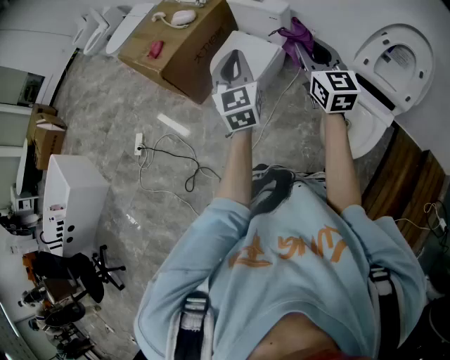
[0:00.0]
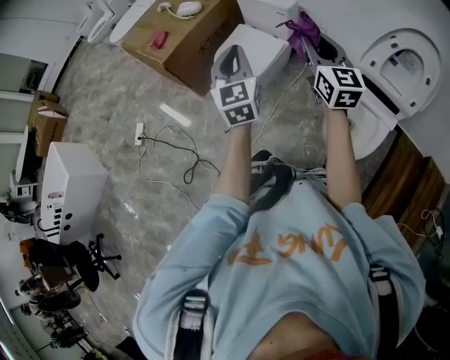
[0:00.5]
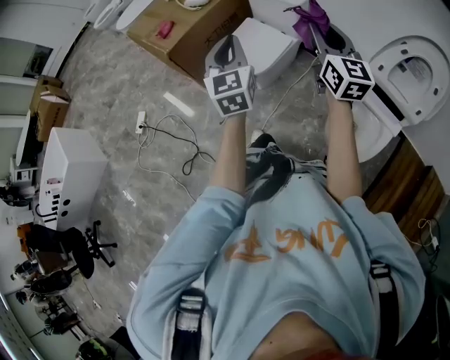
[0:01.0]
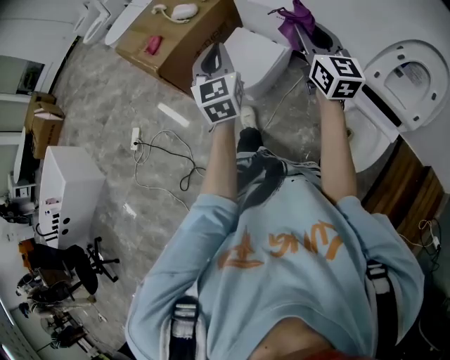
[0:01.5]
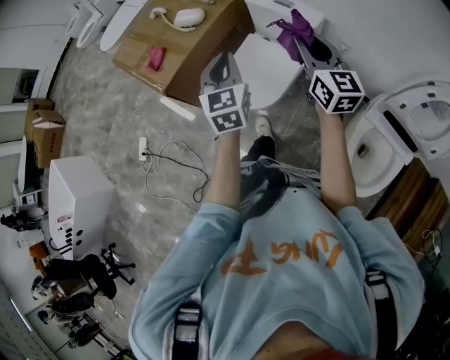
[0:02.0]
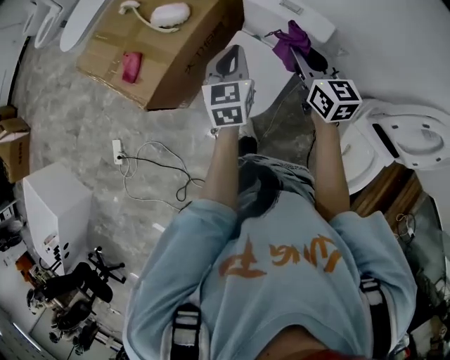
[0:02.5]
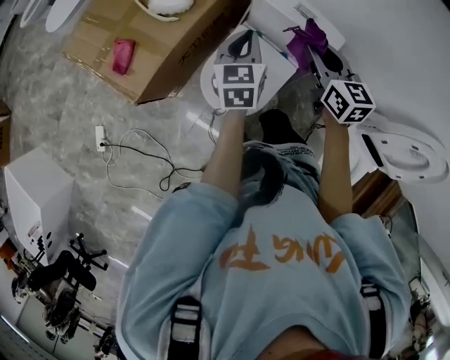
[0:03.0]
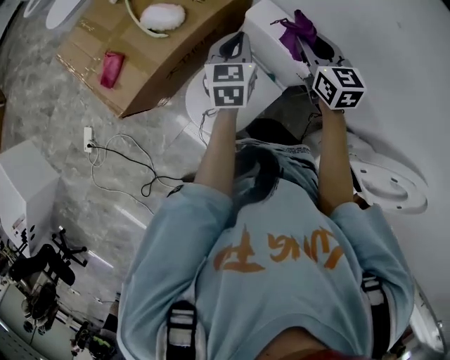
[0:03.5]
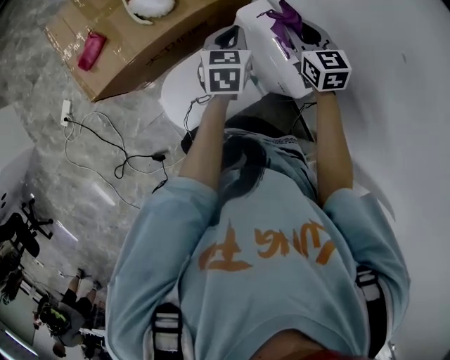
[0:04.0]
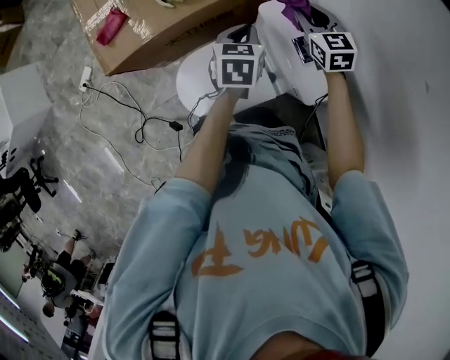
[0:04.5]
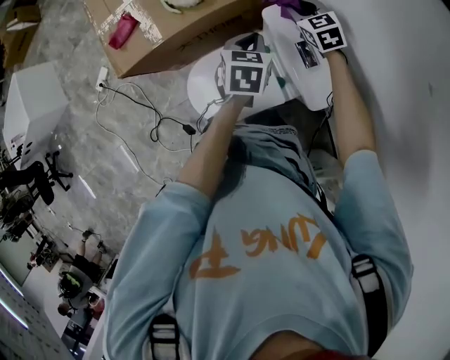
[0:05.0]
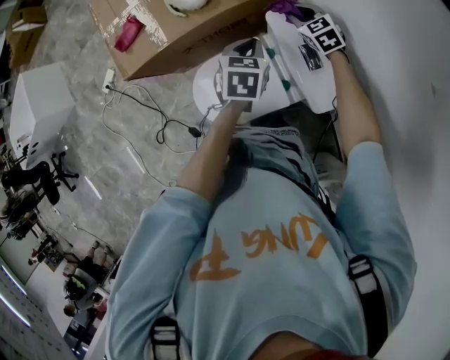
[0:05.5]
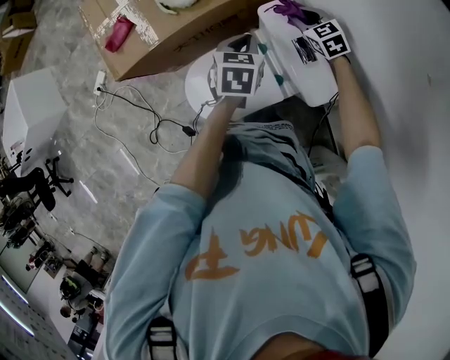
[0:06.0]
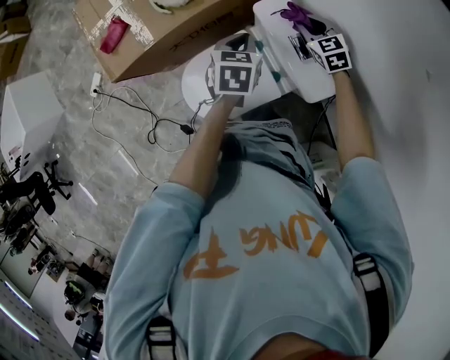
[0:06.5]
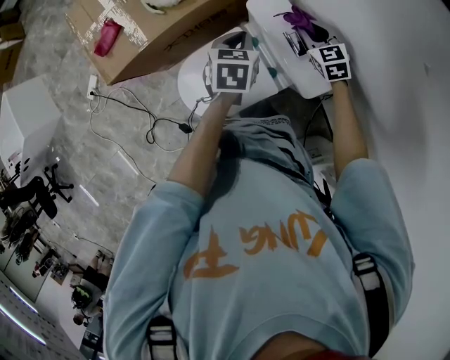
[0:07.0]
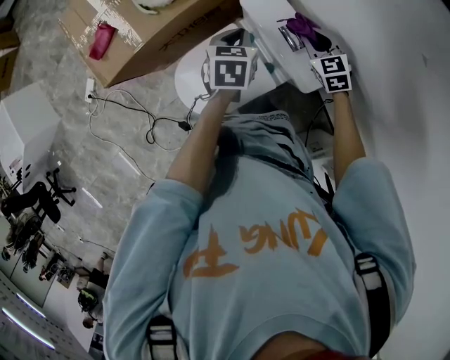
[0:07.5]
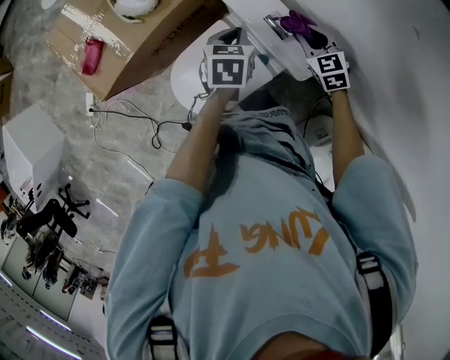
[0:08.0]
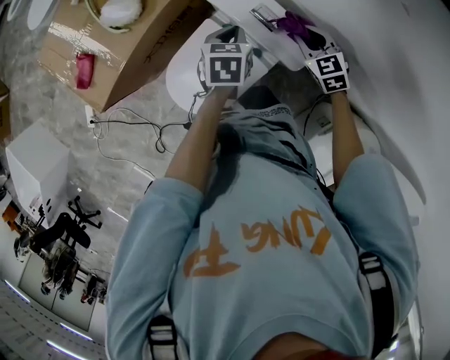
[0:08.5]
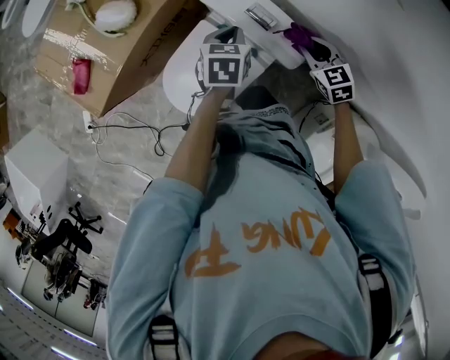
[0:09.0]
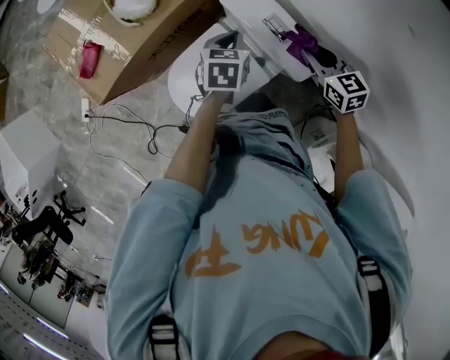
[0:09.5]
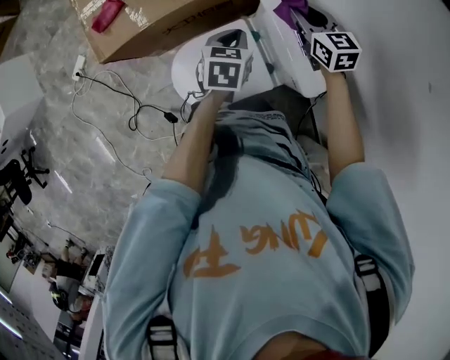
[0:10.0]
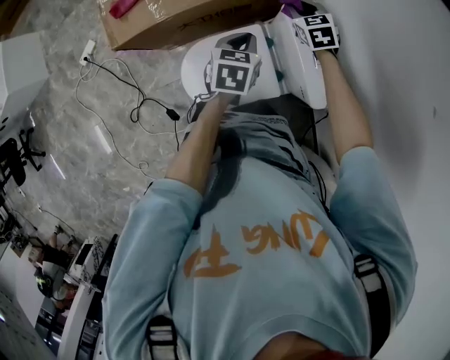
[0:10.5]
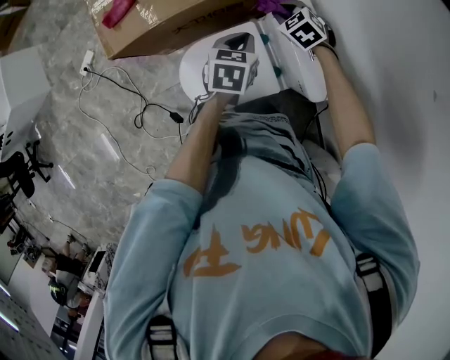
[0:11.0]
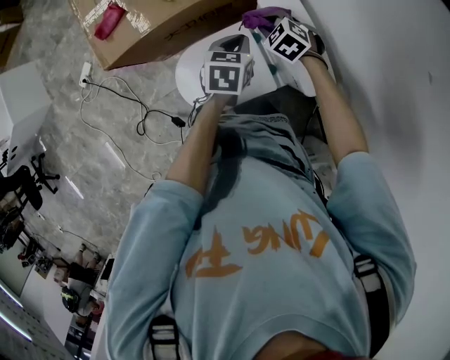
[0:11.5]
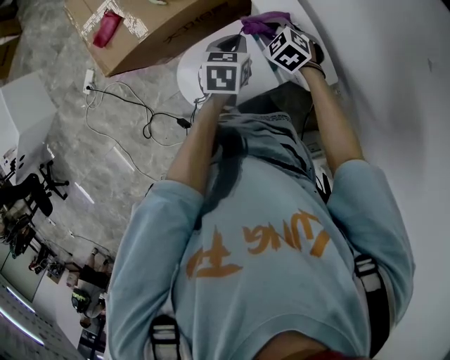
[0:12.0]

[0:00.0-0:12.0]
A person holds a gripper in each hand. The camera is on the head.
0:00.0 to 0:02.0: The grippers both shift forward by about 30 cm.
0:02.0 to 0:04.0: The pair of grippers is taken forward, some 40 cm. The right gripper rotates roughly 40 degrees. Meanwhile the left gripper swivels roughly 30 degrees.
0:04.0 to 0:06.0: The right gripper moves downward and forward, approximately 15 cm, and swivels approximately 20 degrees.
0:06.0 to 0:08.0: The right gripper goes some 15 cm backward and to the right. Meanwhile the left gripper moves roughly 5 cm.
0:08.0 to 0:10.0: The left gripper goes approximately 10 cm to the left; the right gripper shifts roughly 20 cm to the left, forward and upward, and changes its angle by about 20 degrees.
0:10.0 to 0:12.0: The right gripper goes approximately 15 cm downward, to the left and backward, and changes its angle by approximately 40 degrees.

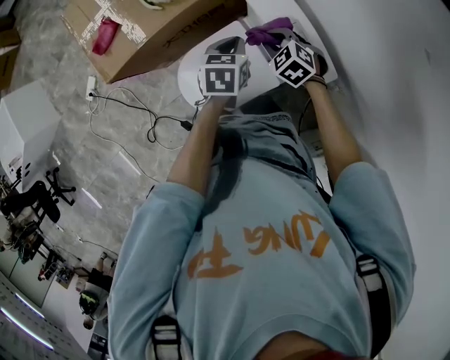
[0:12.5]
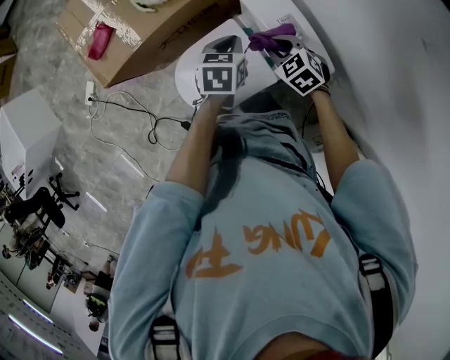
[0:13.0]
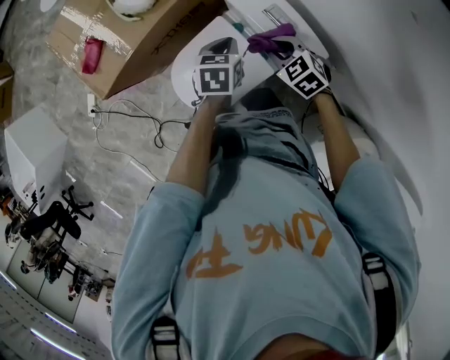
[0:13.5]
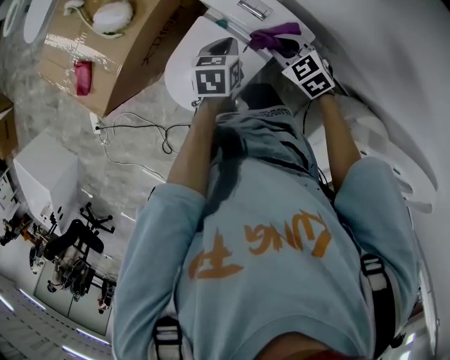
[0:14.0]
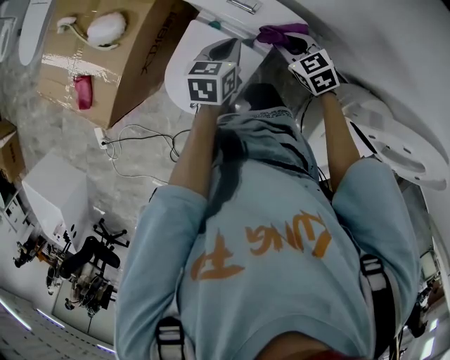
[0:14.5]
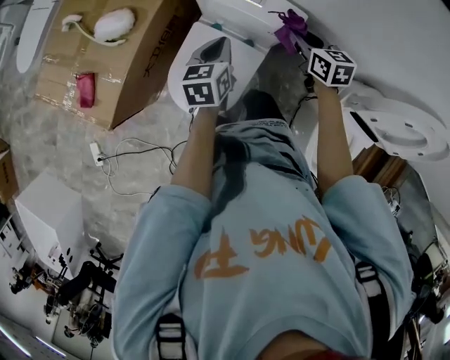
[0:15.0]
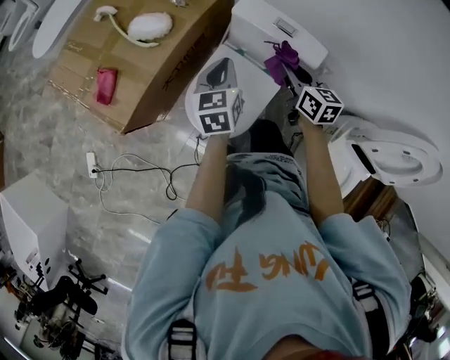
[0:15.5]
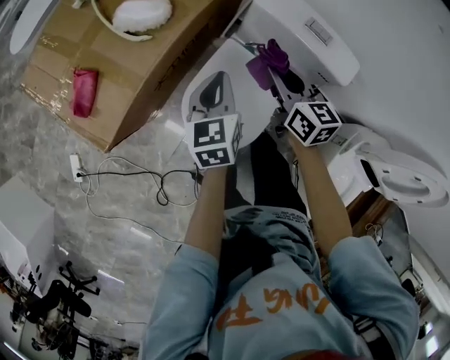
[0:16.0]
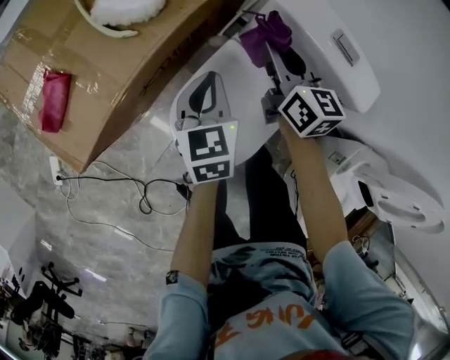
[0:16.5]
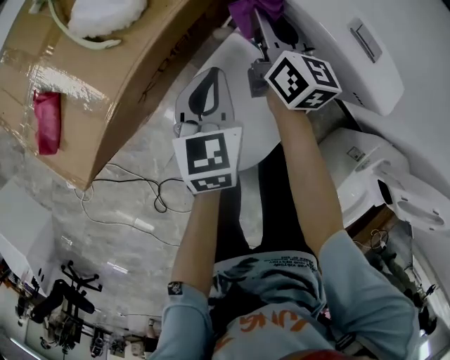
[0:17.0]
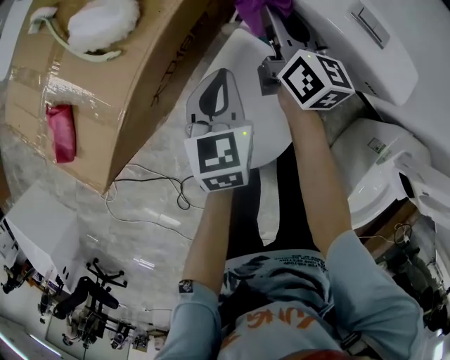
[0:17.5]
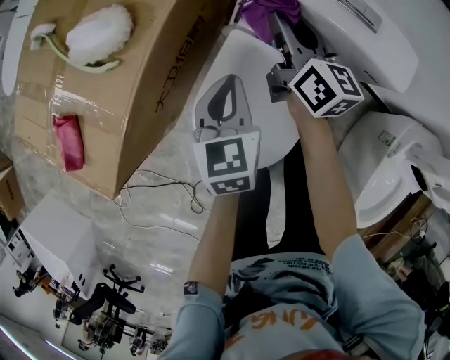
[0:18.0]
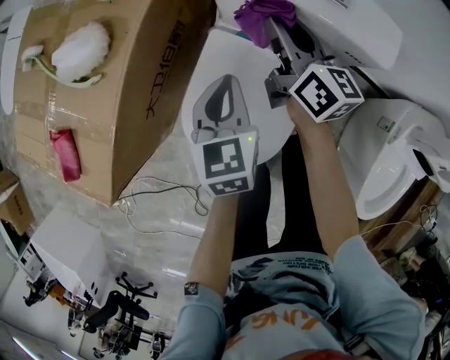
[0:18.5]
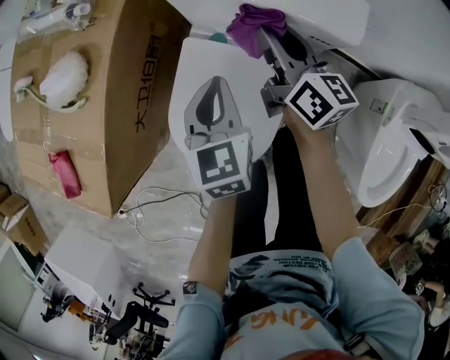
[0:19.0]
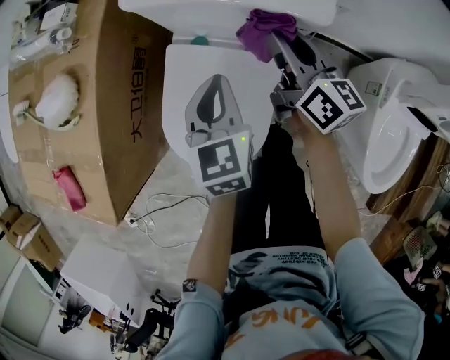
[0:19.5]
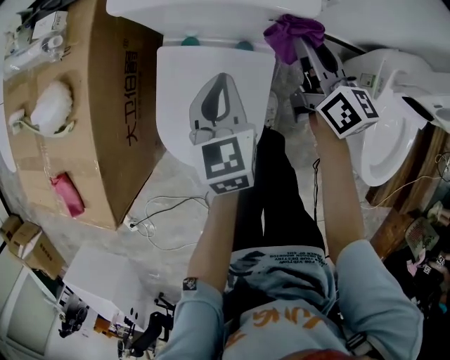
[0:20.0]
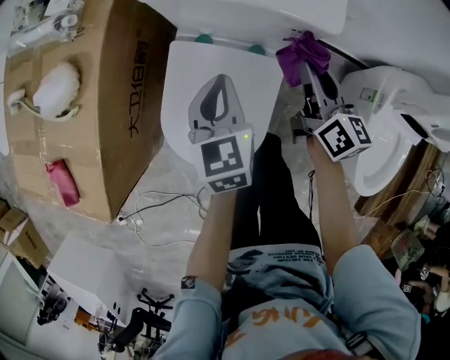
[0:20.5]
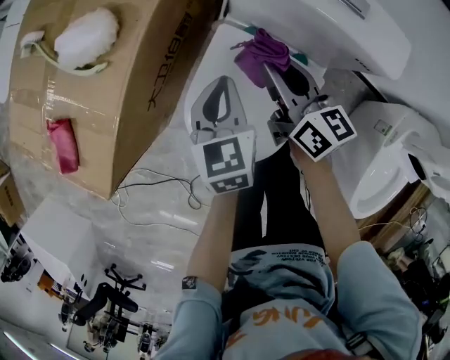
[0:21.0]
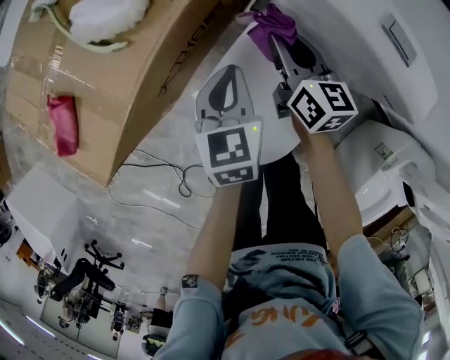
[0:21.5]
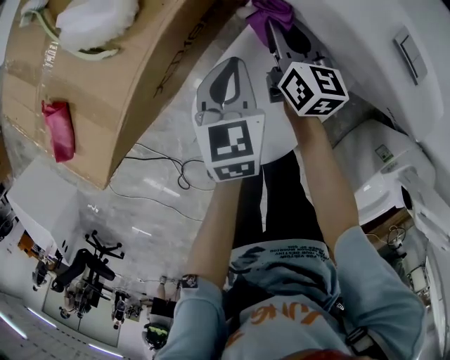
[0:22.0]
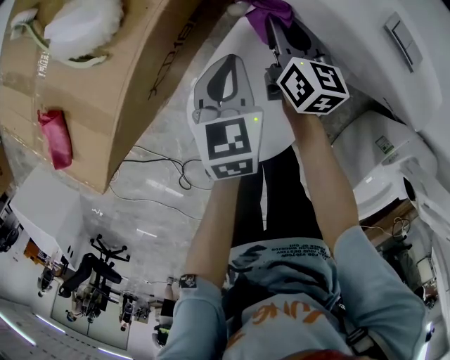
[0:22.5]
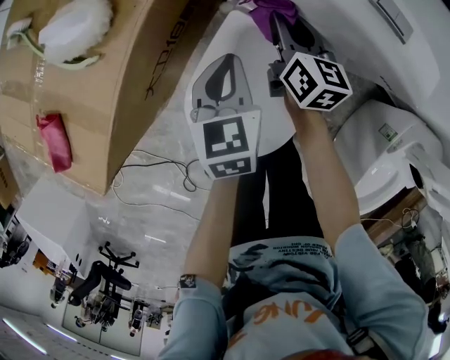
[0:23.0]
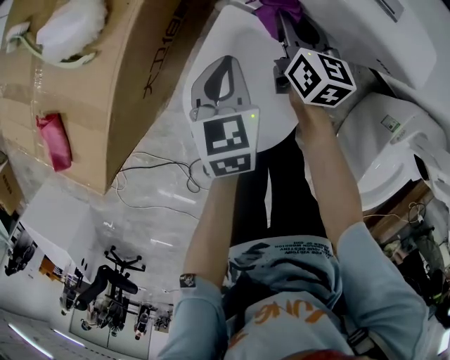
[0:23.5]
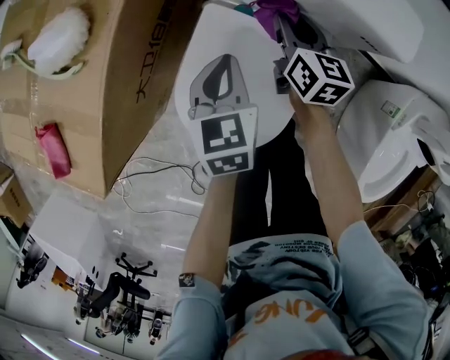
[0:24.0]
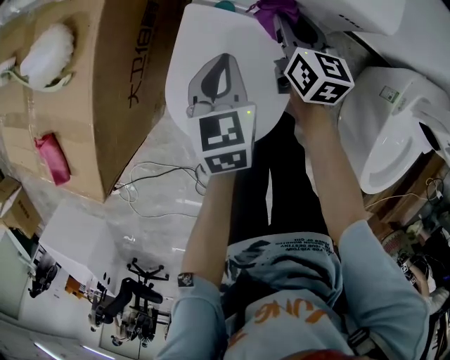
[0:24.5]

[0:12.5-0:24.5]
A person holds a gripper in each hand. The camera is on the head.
0:12.5 to 0:14.5: The right gripper moves roughly 15 cm, and rotates some 40 degrees. The left gripper changes place by about 10 cm, and changes its angle by approximately 30 degrees.
0:14.5 to 0:16.5: The left gripper heads to the left and downward, covering about 30 cm, and rotates some 30 degrees. The right gripper travels to the left by approximately 25 cm, and rotates roughly 40 degrees.
0:16.5 to 0:18.5: The grippers both shift to the right by roughly 10 cm. The right gripper rotates about 20 degrees.
0:18.5 to 0:20.5: The left gripper goes approximately 5 cm to the right. The right gripper moves to the right and backward, roughly 20 cm.
0:20.5 to 0:22.5: The right gripper moves forward, to the left and downward, some 30 cm, and rotates some 20 degrees. The left gripper heads to the left, forward and downward, covering roughly 15 cm.
0:22.5 to 0:24.5: The grippers both shift to the right and backward by approximately 15 cm.

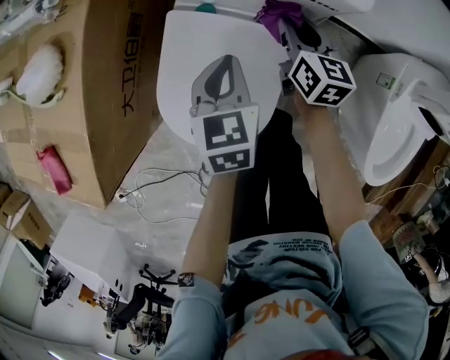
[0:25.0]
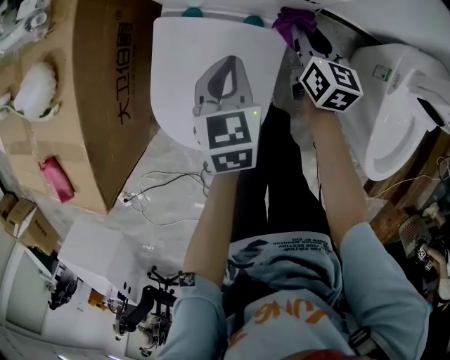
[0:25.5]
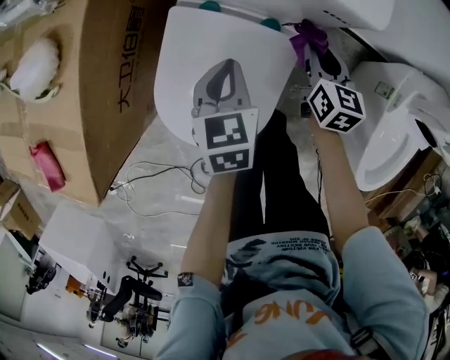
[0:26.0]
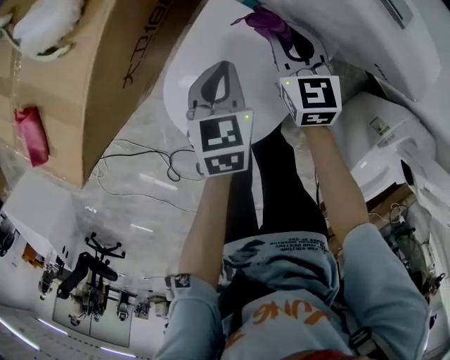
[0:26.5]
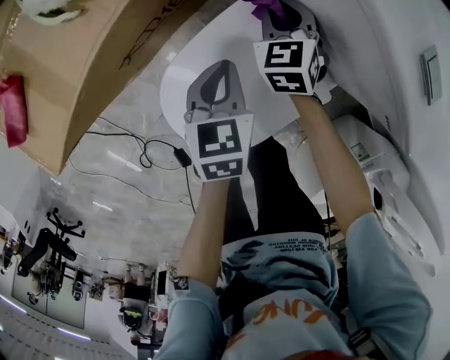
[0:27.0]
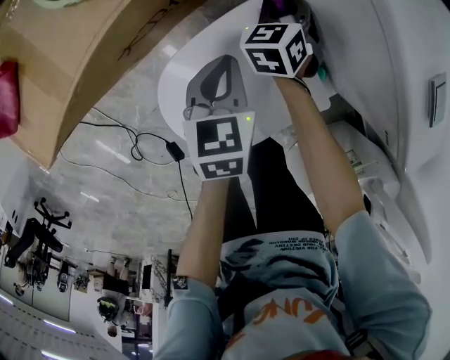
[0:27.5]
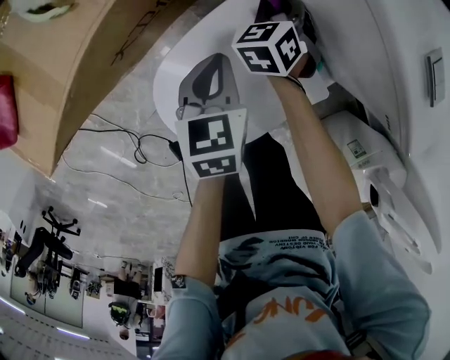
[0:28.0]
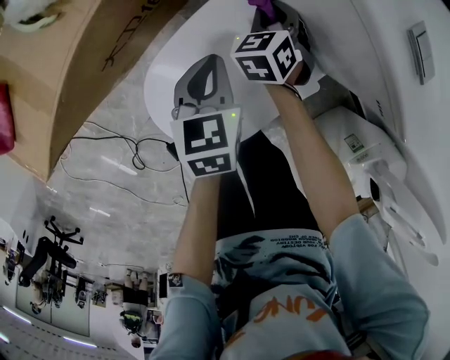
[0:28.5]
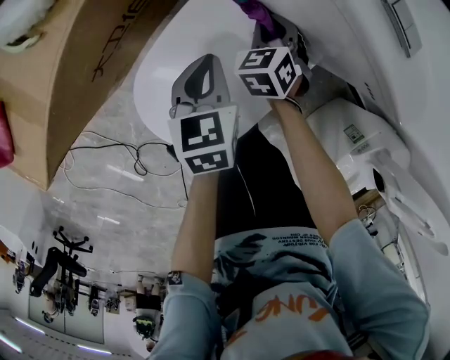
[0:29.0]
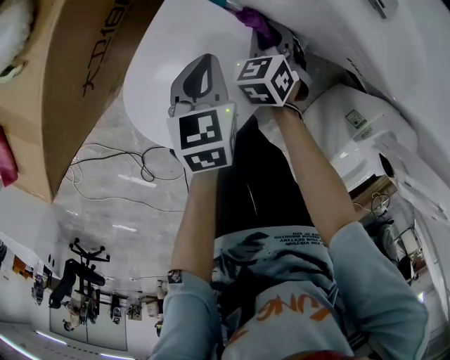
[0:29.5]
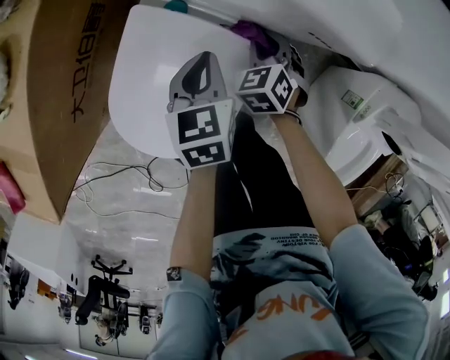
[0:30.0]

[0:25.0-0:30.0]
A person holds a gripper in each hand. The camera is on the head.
0:25.0 to 0:27.5: The right gripper moves roughly 30 cm, and rolls counterclockwise, seen from behind, by roughly 60 degrees; the left gripper changes place by roughly 15 cm, and swivels about 40 degrees.
0:27.5 to 0:30.0: The left gripper moves about 15 cm, and rotates about 20 degrees. Meanwhile the right gripper ends up about 30 cm from where it was.
